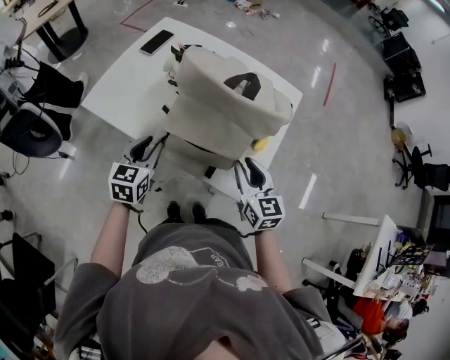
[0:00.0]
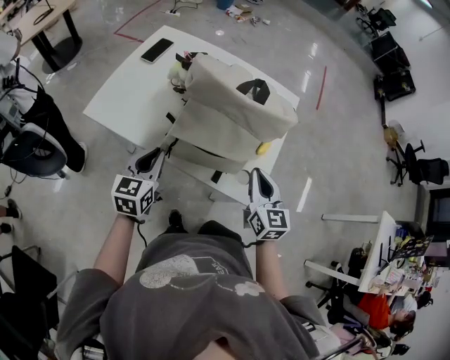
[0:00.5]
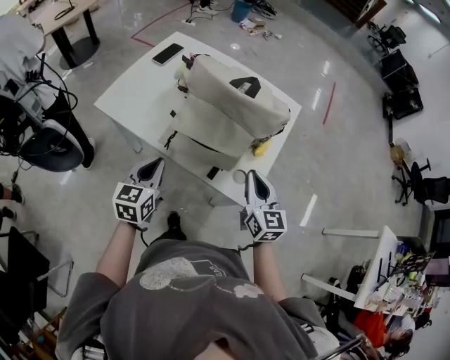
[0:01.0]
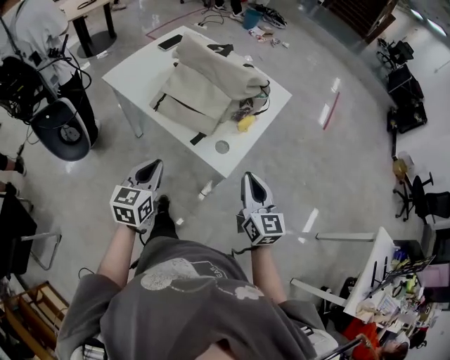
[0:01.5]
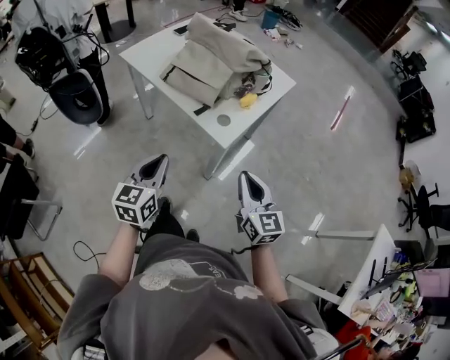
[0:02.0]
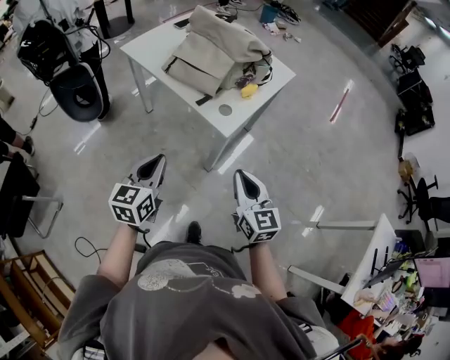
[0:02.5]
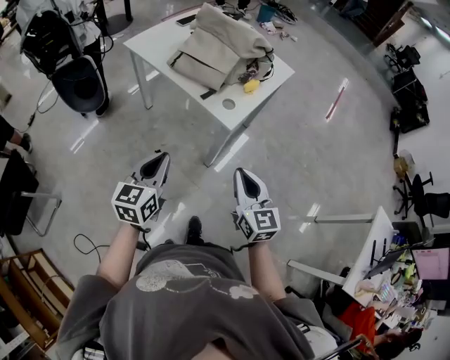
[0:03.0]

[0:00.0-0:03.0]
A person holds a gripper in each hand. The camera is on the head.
0:00.0 to 0:01.5: The two grippers go approximately 25 cm backward and to the right. The left gripper closes its fingers; the right gripper closes its fingers.
0:01.5 to 0:03.0: The two grippers go some 20 cm backward.

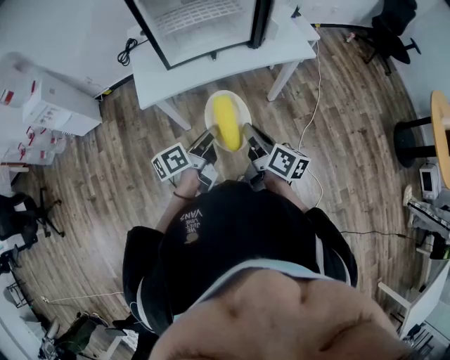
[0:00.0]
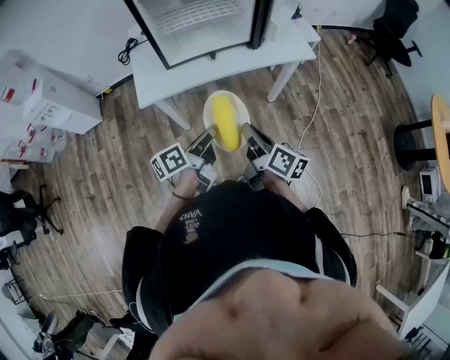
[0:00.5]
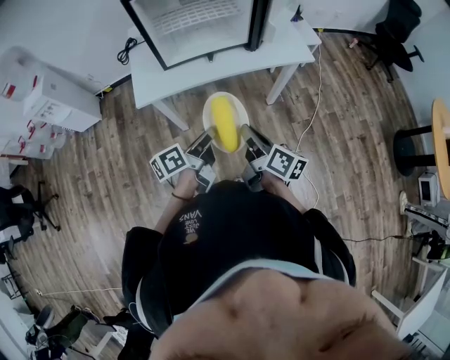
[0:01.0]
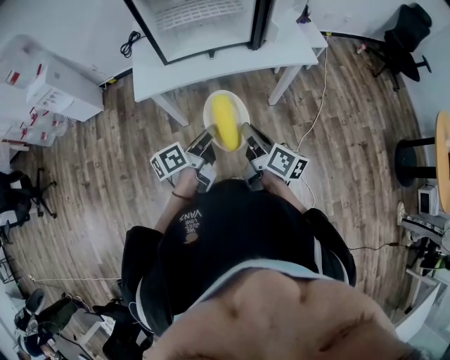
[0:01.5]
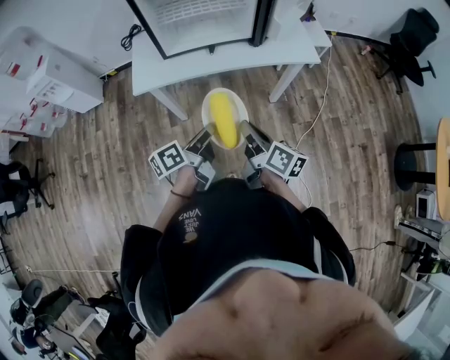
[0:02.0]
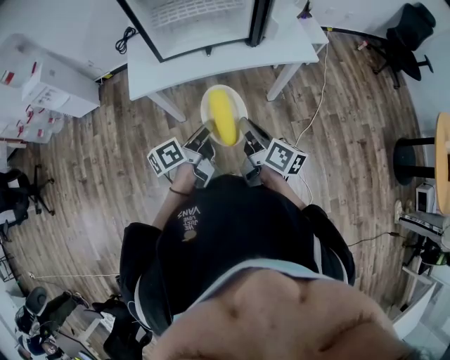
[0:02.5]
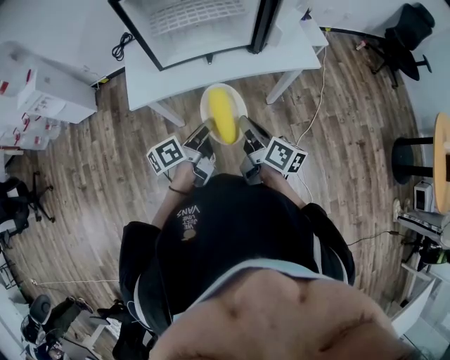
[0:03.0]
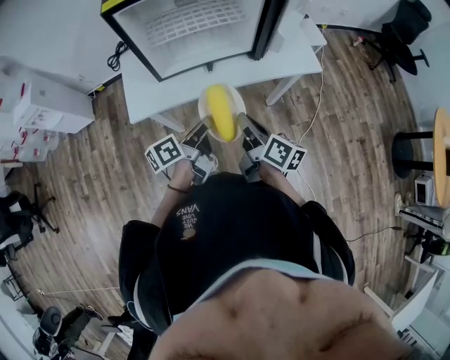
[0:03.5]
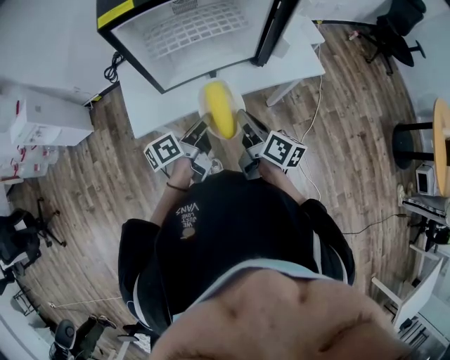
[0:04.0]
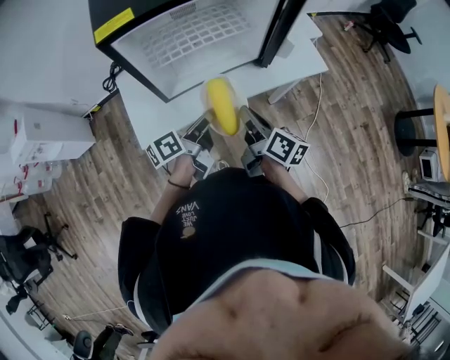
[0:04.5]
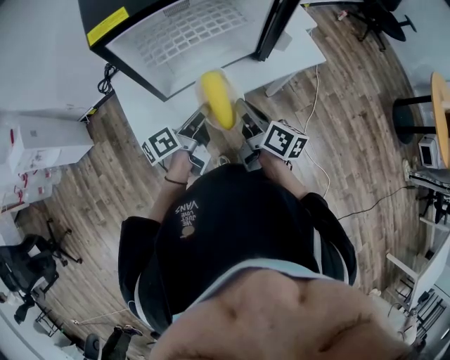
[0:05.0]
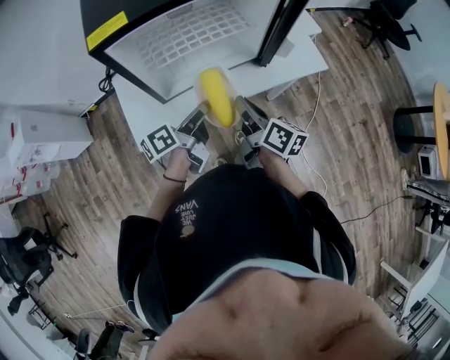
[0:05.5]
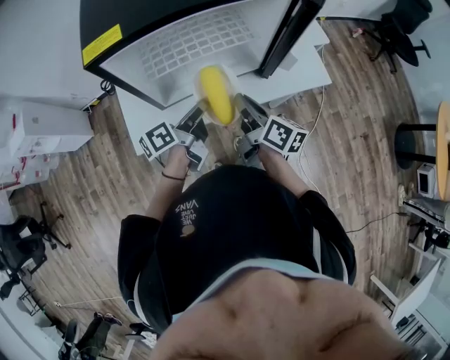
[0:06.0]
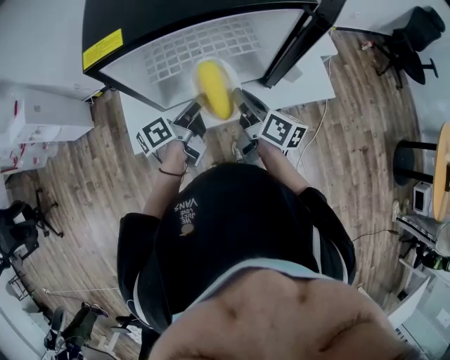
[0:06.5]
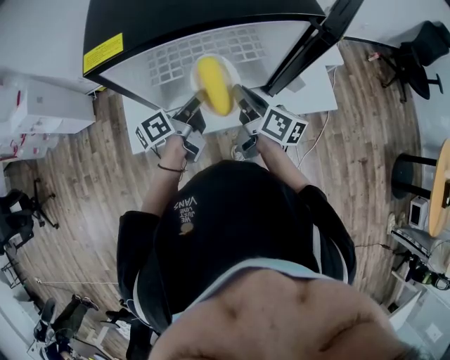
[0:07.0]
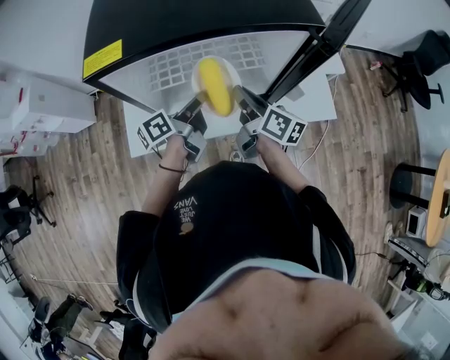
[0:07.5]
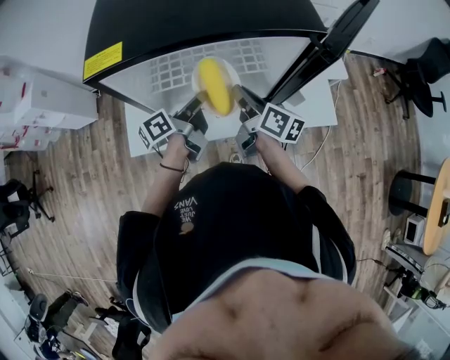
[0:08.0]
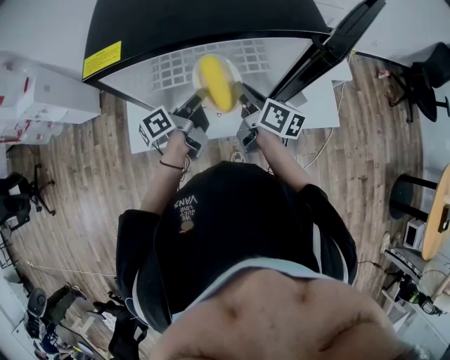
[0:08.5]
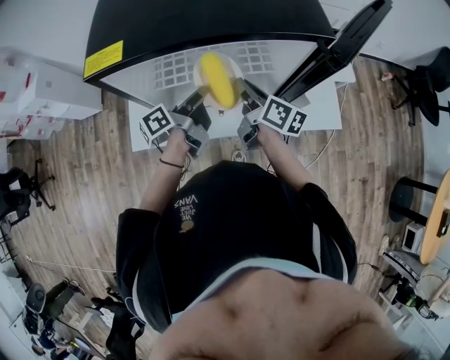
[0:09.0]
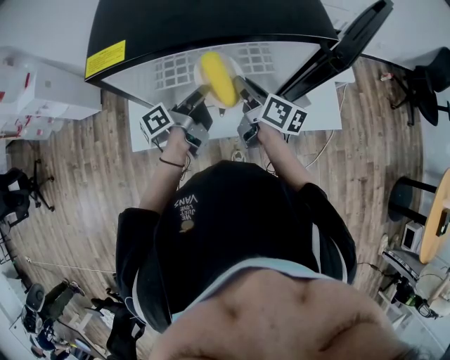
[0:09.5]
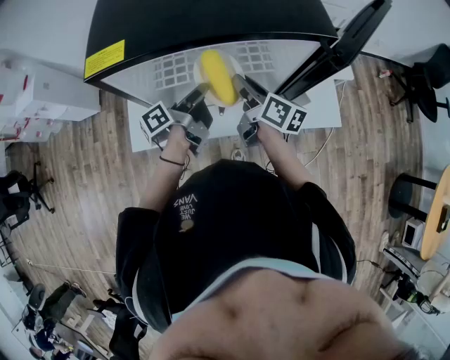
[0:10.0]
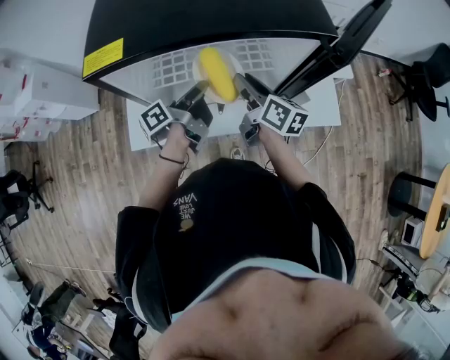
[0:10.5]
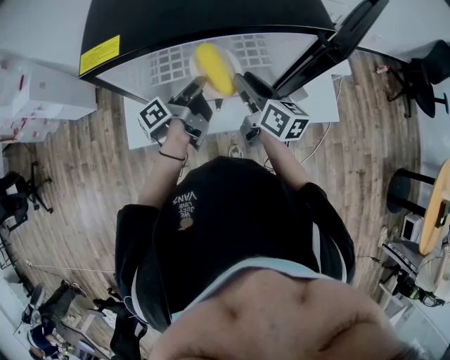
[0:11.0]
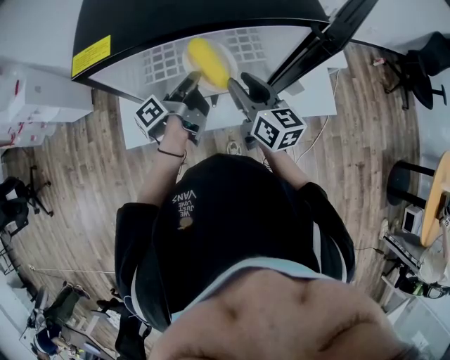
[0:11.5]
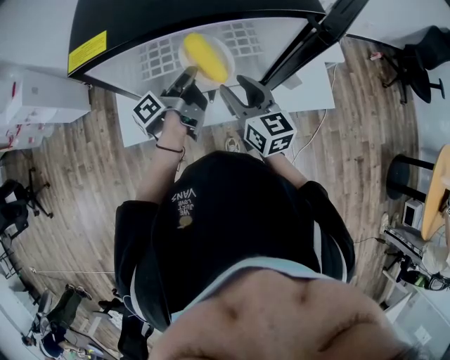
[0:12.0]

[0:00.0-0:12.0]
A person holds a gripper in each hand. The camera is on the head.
0:00.0 to 0:02.0: The right gripper changes place by some 5 cm.
0:02.0 to 0:04.0: The right gripper changes place by roughly 20 cm.
0:04.0 to 0:06.0: The right gripper moves approximately 10 cm.
0:06.0 to 0:08.0: The right gripper shifts by roughly 15 cm.
0:10.0 to 0:12.0: The right gripper changes place by roughly 10 cm, turns by some 40 degrees, and opens up.

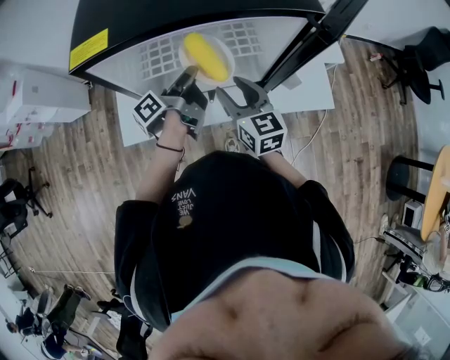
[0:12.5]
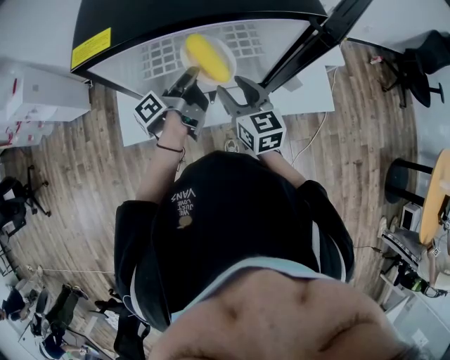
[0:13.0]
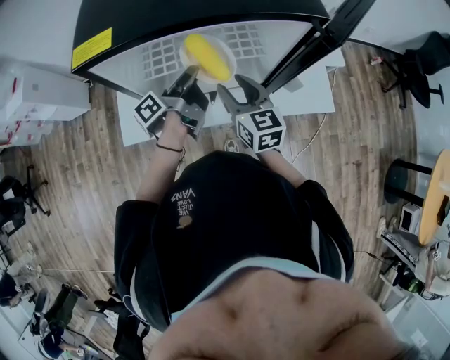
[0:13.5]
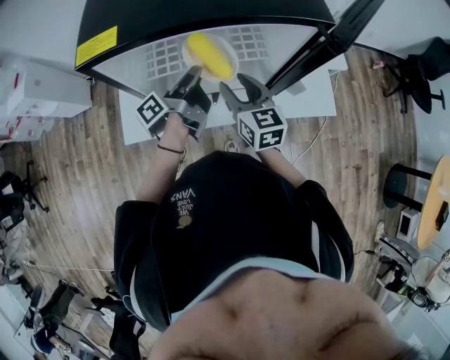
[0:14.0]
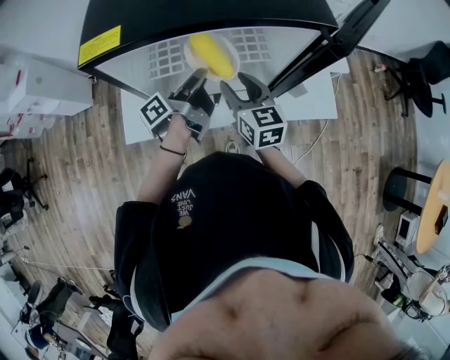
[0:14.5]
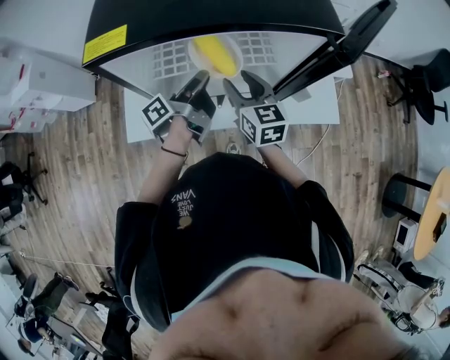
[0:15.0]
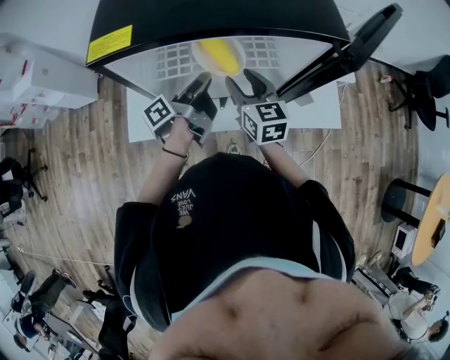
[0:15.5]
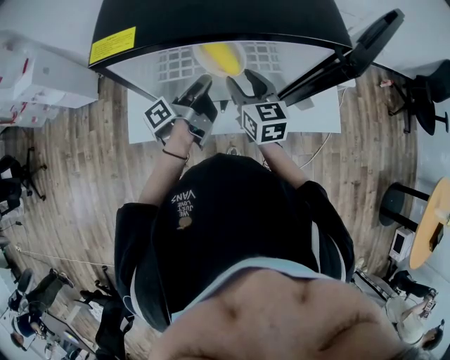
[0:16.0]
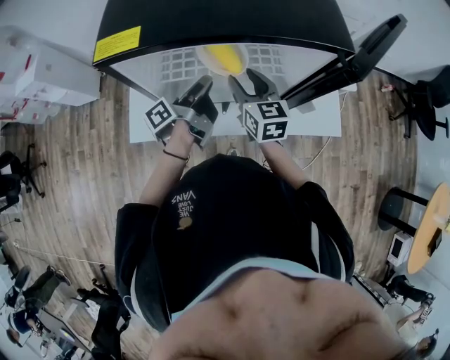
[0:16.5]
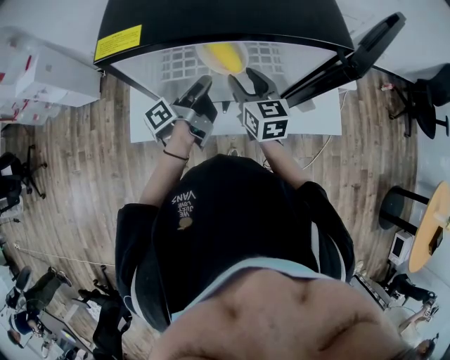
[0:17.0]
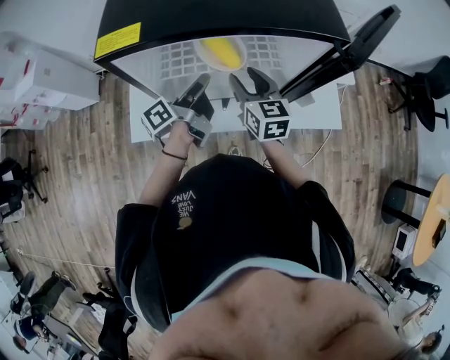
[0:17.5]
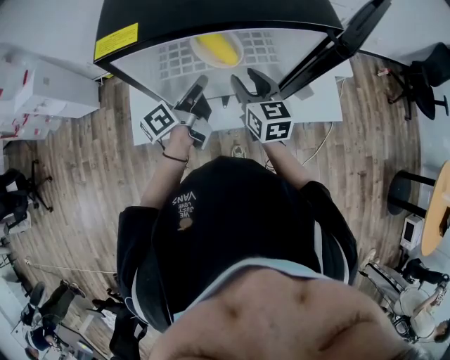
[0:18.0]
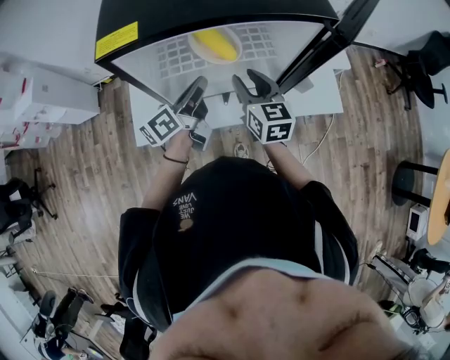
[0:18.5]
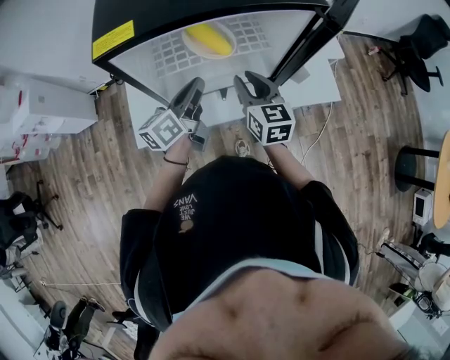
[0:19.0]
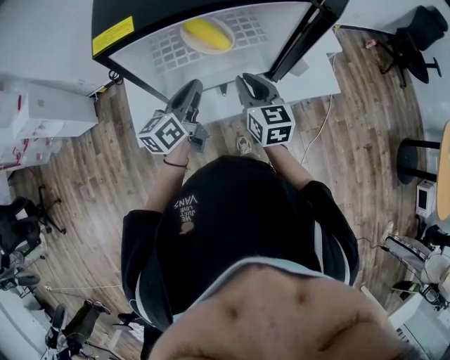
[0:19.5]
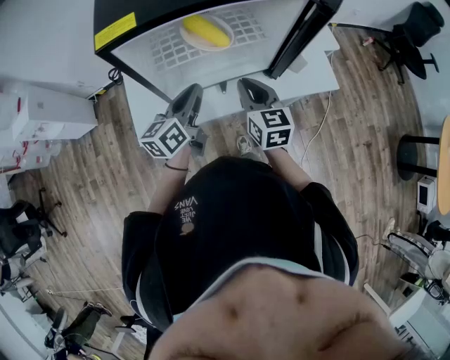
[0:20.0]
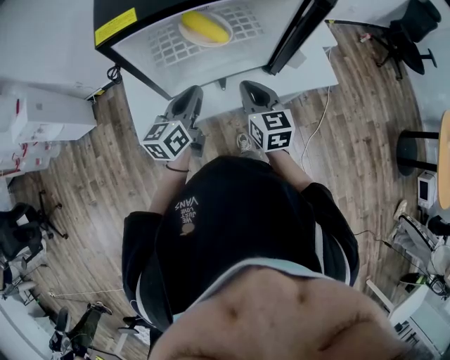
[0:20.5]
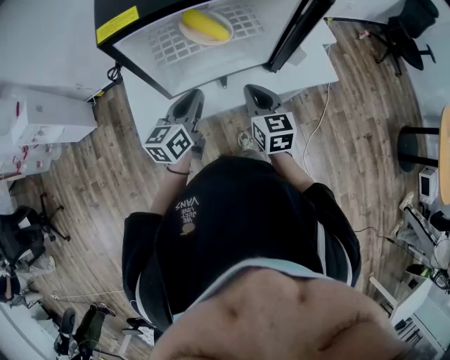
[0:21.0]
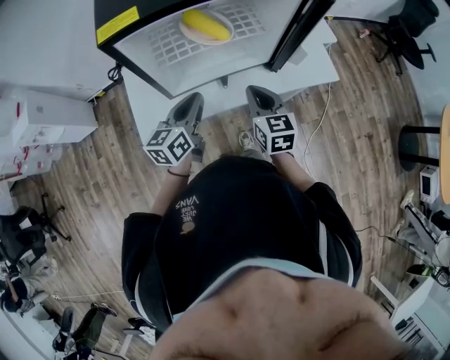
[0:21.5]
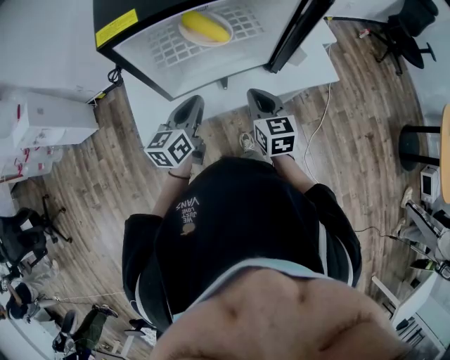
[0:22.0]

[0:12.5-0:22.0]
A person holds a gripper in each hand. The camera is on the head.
0:18.0 to 0:20.0: The right gripper shifts by approximately 10 cm, and closes.
0:20.0 to 0:22.0: The right gripper shifts by some 5 cm.

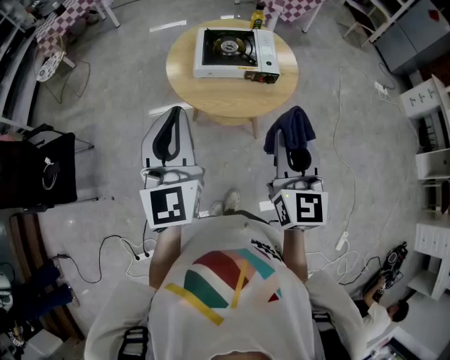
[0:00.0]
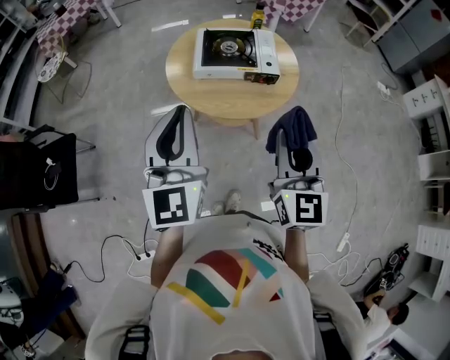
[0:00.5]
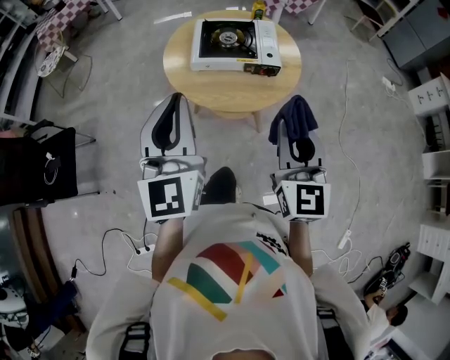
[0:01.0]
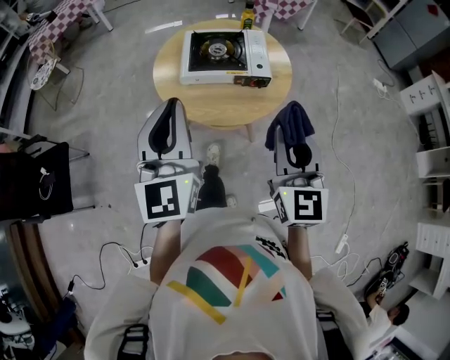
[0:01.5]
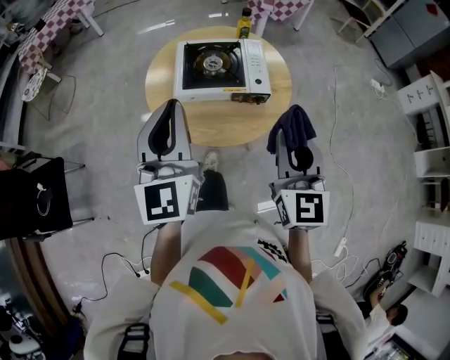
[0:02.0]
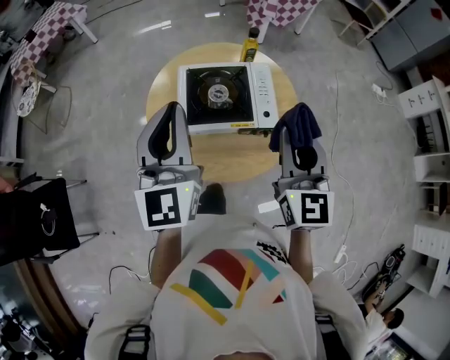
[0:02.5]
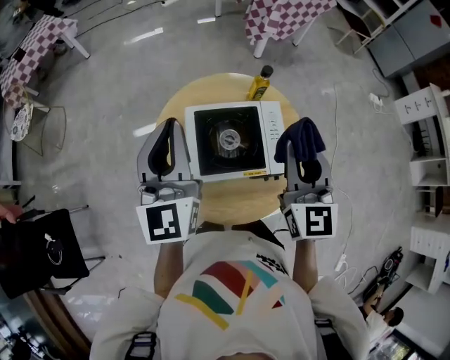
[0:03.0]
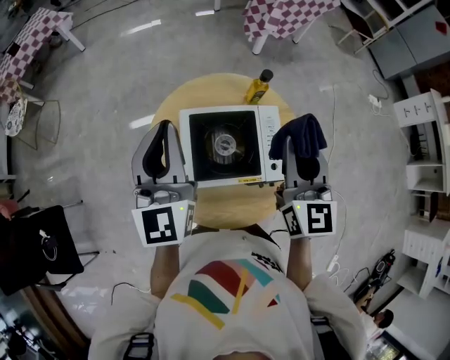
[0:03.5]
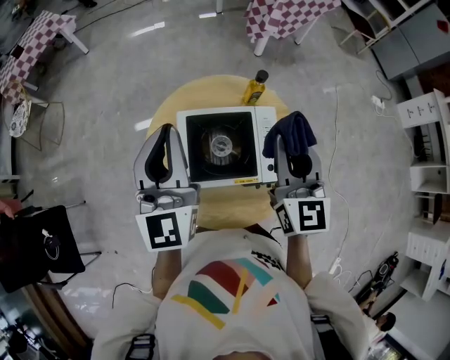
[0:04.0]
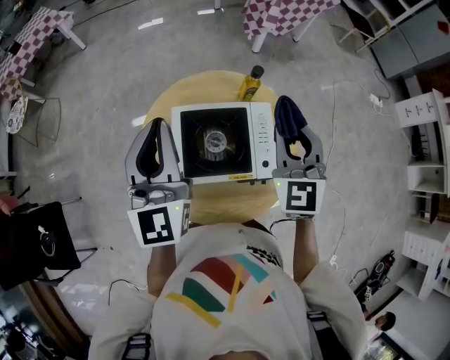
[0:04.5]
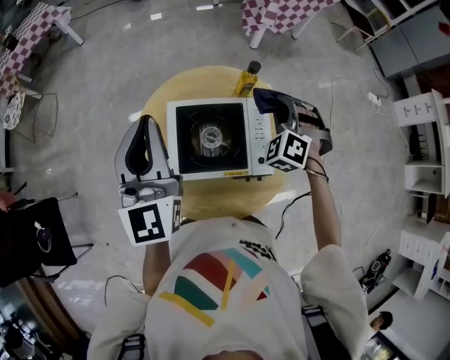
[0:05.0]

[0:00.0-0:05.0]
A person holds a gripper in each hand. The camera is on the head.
0:00.0 to 0:02.5: The left gripper moves roughly 30 cm.
0:02.5 to 0:05.0: The left gripper changes place by about 15 cm.
